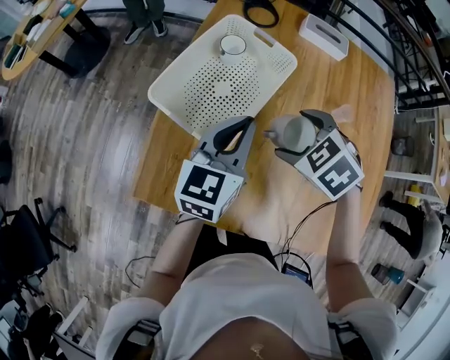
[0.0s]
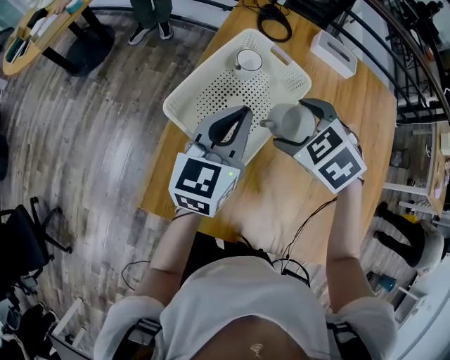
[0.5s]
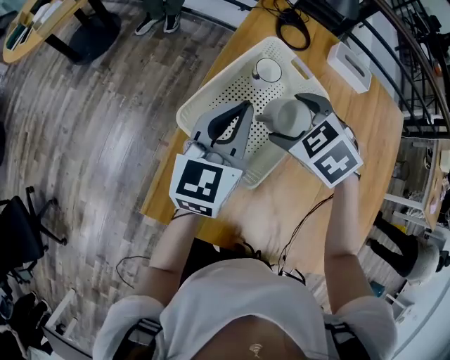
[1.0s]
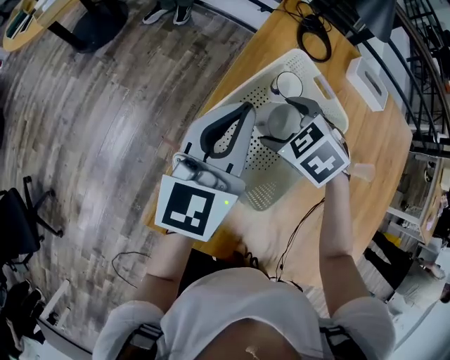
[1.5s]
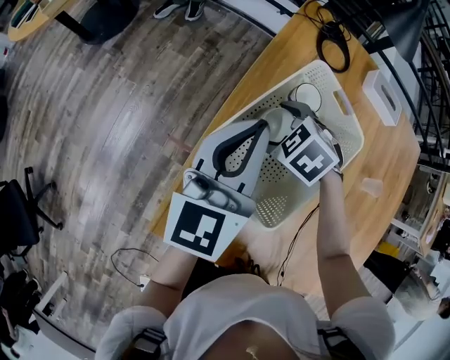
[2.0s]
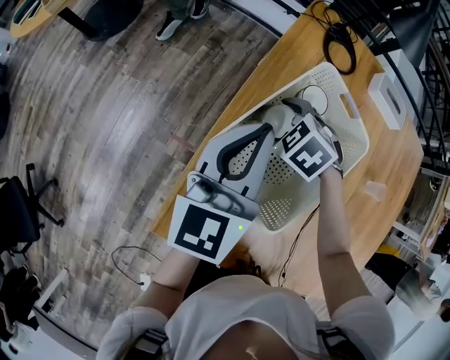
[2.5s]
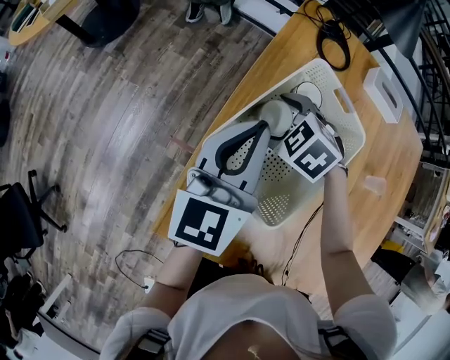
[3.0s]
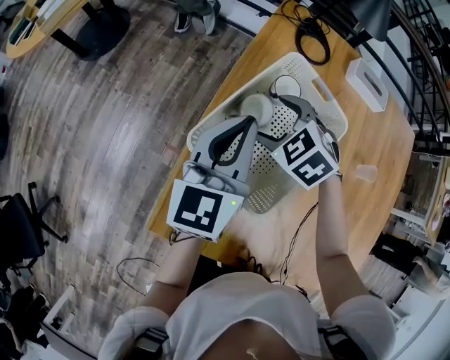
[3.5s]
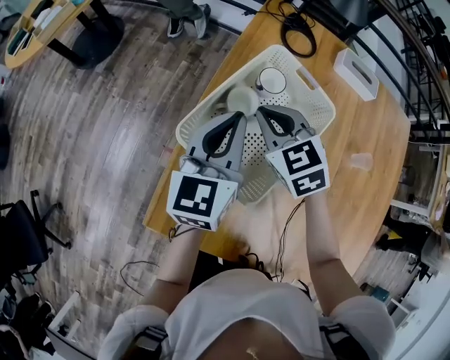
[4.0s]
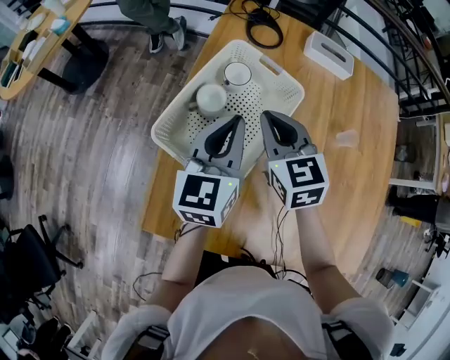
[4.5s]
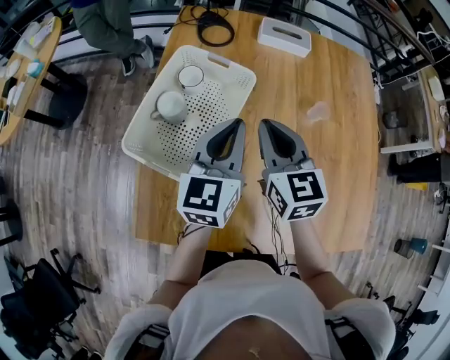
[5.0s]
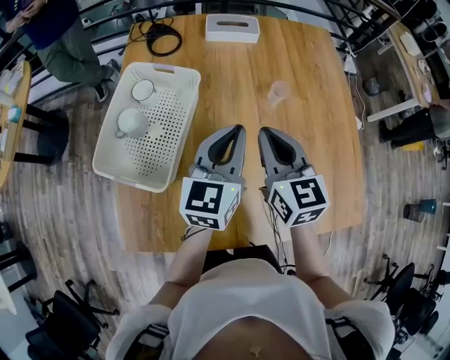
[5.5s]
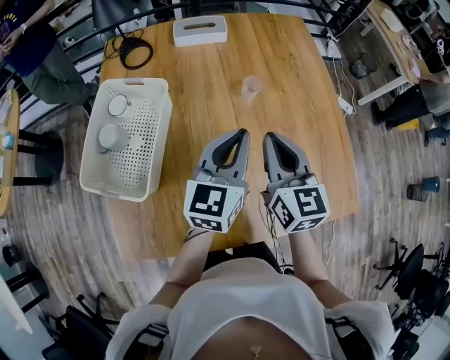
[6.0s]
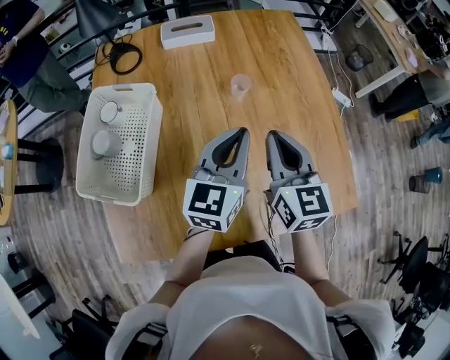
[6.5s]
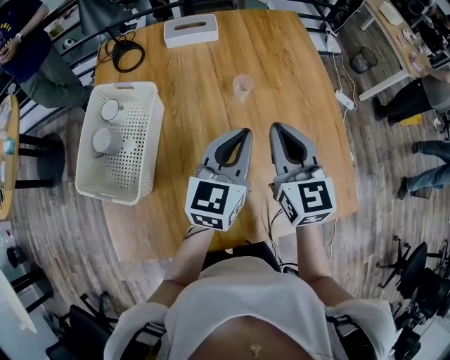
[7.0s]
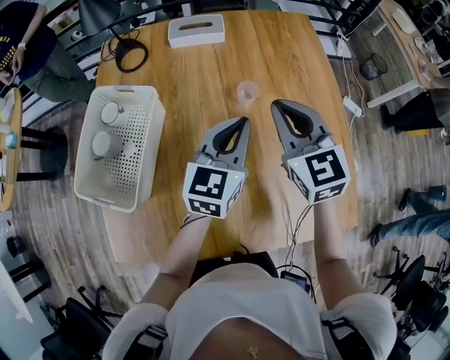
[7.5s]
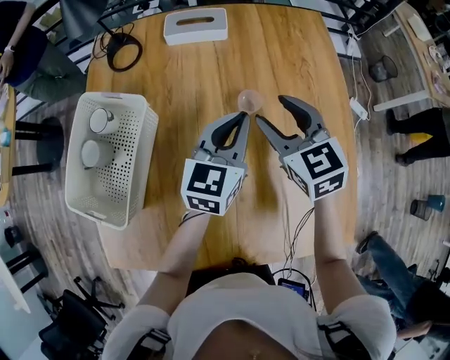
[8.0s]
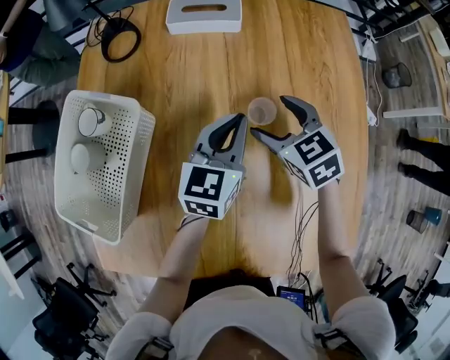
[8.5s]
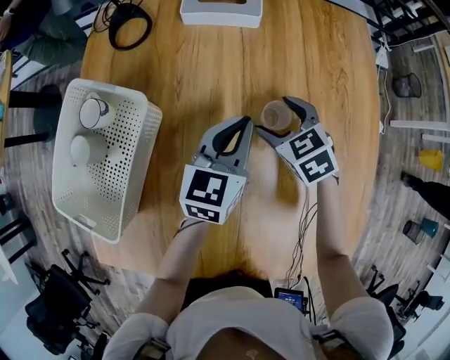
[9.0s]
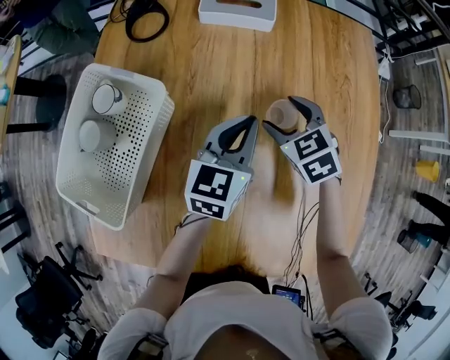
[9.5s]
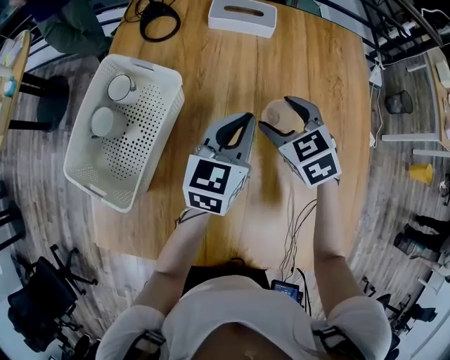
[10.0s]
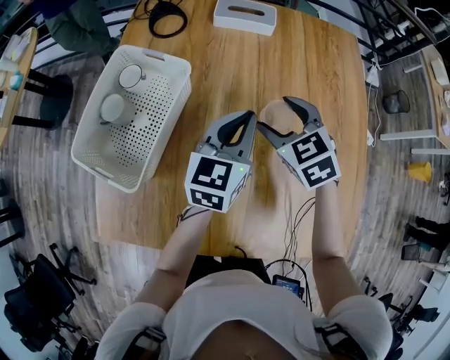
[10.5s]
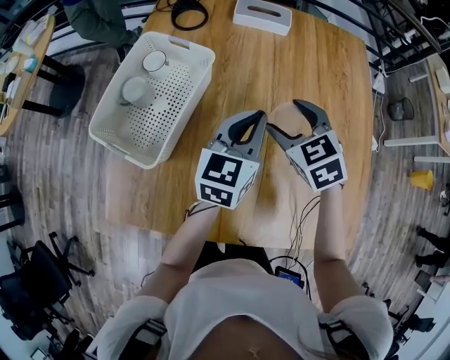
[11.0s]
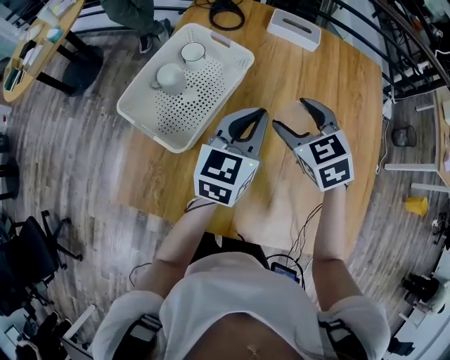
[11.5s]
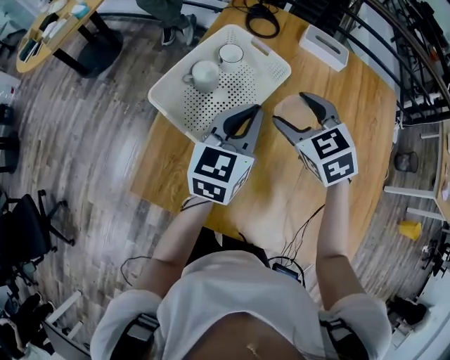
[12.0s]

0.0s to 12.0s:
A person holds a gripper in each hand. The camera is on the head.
0.0s to 2.0s: The right gripper travels forward, to the left and downward by about 30 cm, while the left gripper moves forward and to the left, roughly 20 cm.
2.0s to 4.0s: The right gripper goes about 10 cm upward, tips its fingers upward by roughly 30 degrees, and closes.
4.0s to 6.0s: The right gripper moves roughly 40 cm, and turns by roughly 60 degrees. Meanwhile the left gripper ends up roughly 40 cm from where it was, and turns by some 40 degrees.
6.0s to 8.0s: Both grippers travel together forward, approximately 15 cm. The right gripper swivels approximately 30 degrees, and opens.
8.0s to 10.0s: The right gripper is displaced downward and to the left by roughly 10 cm, and swivels approximately 20 degrees. Meanwhile the left gripper shifts roughly 5 cm to the left, and moves about 10 cm downward and comes back.
10.0s to 12.0s: The left gripper moves to the left, approximately 20 cm, while the right gripper travels to the left and upward by about 25 cm.

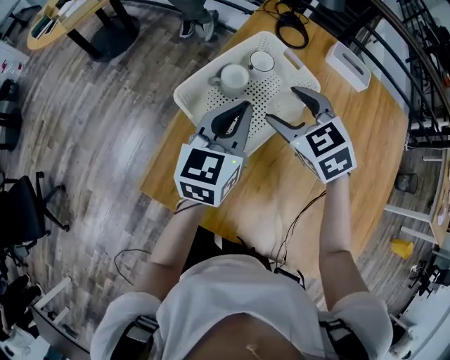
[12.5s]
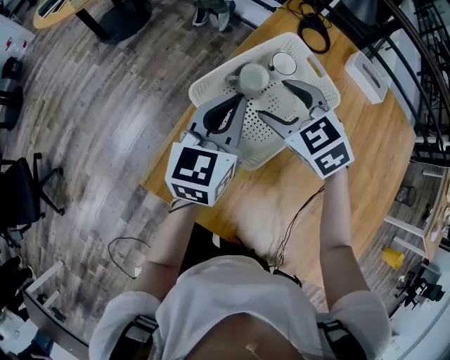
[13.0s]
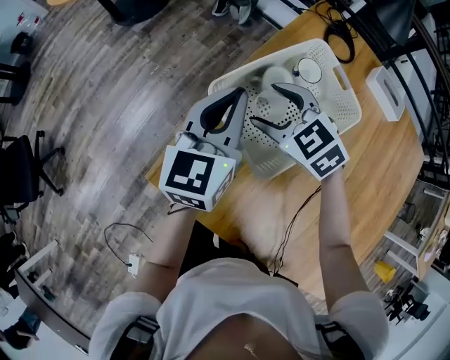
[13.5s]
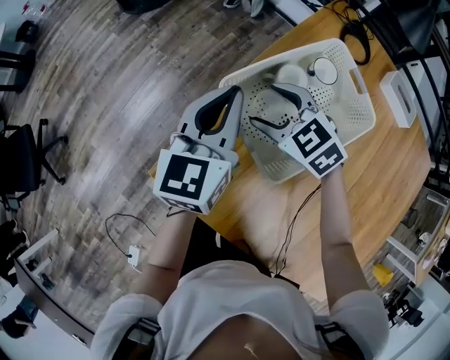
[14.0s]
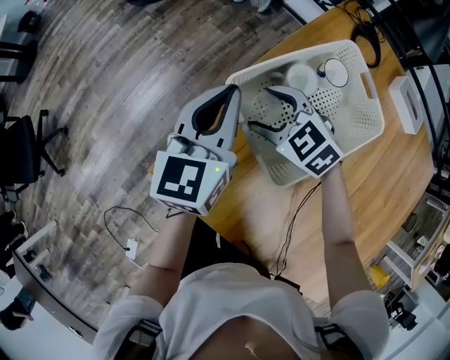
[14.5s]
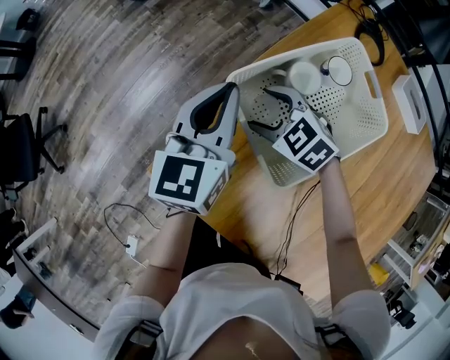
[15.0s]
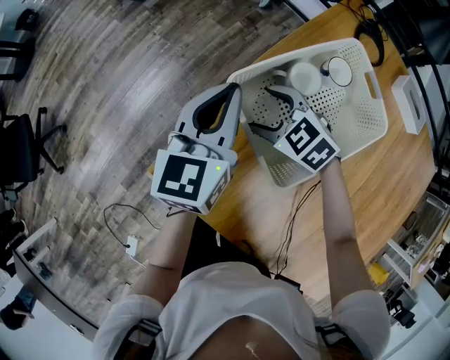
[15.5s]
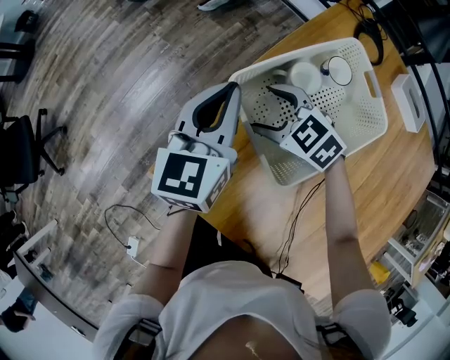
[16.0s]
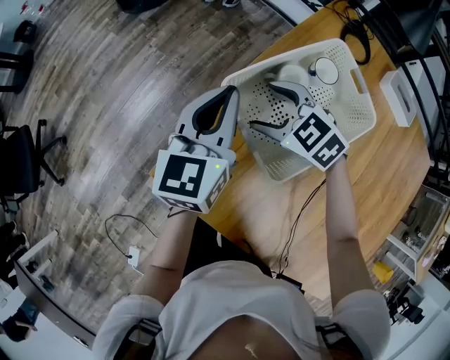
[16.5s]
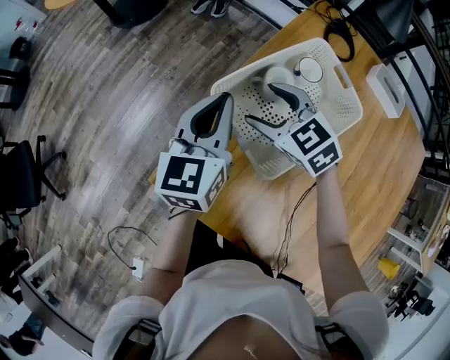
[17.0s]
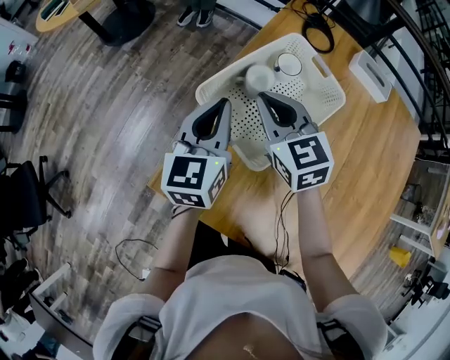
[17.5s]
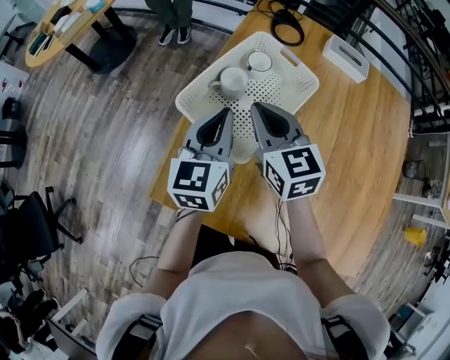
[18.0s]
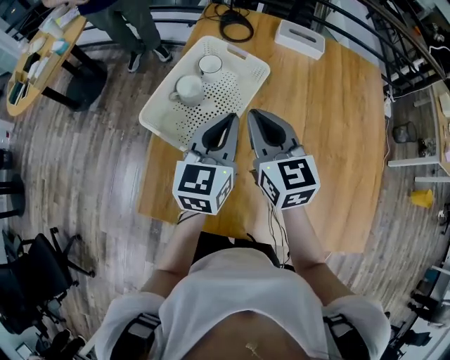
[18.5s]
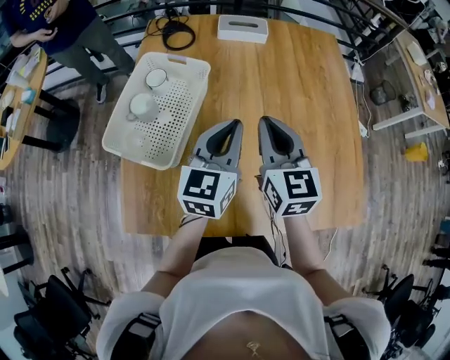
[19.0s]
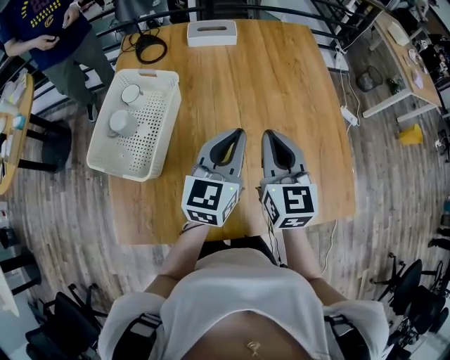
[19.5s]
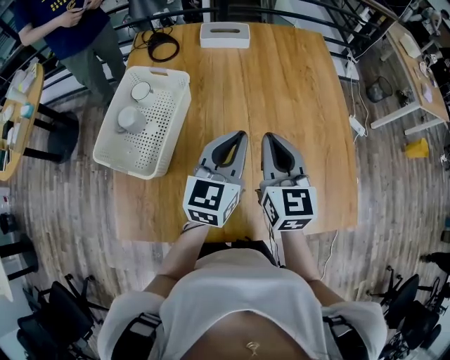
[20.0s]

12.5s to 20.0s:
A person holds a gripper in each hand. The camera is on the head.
12.5s to 14.5s: The right gripper ends up about 20 cm from where it was, and turns by roughly 30 degrees, while the left gripper shifts by roughly 15 cm, and swivels roughly 20 degrees.
14.5s to 16.5s: The grippers move only a little.
16.5s to 18.0s: The right gripper heads upward, covering about 15 cm, rotates approximately 60 degrees, and closes. Meanwhile the left gripper shifts by approximately 10 cm.
18.0s to 20.0s: The left gripper moves some 35 cm, and rotates some 30 degrees. Meanwhile the right gripper ends up about 35 cm from where it was, and turns by some 40 degrees.

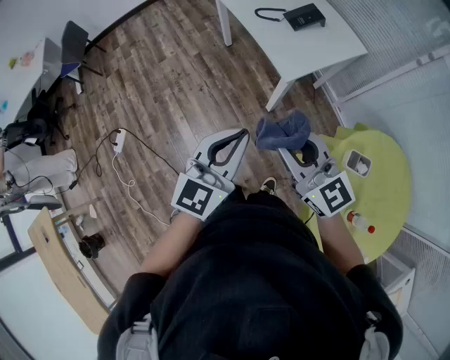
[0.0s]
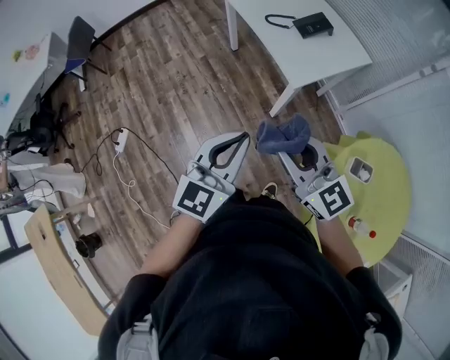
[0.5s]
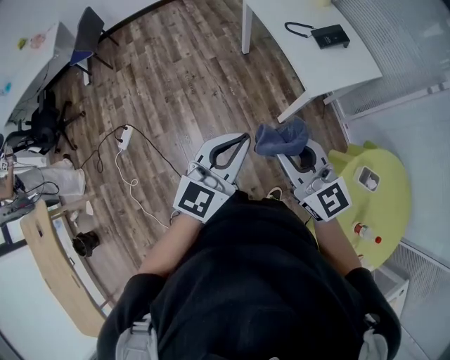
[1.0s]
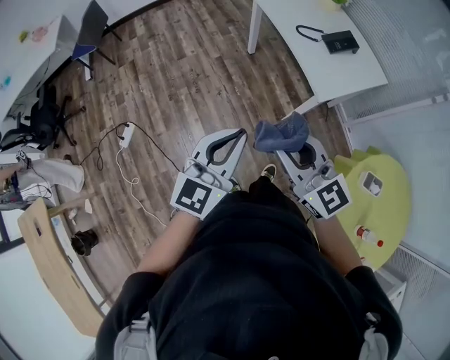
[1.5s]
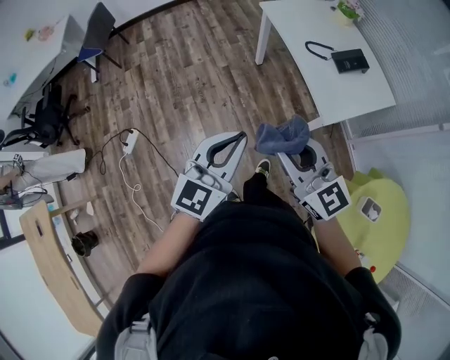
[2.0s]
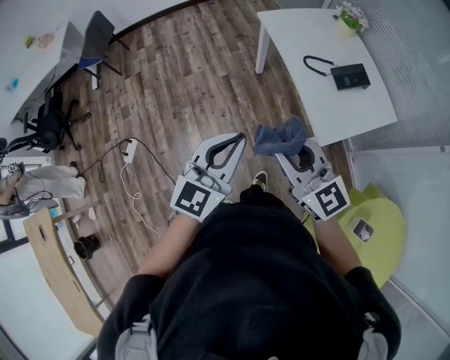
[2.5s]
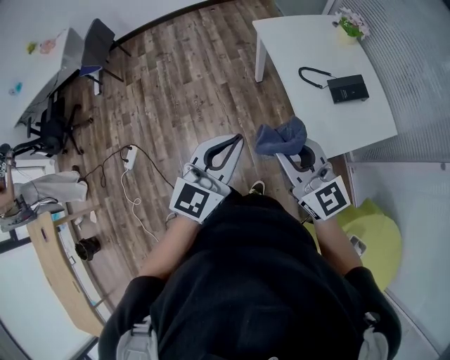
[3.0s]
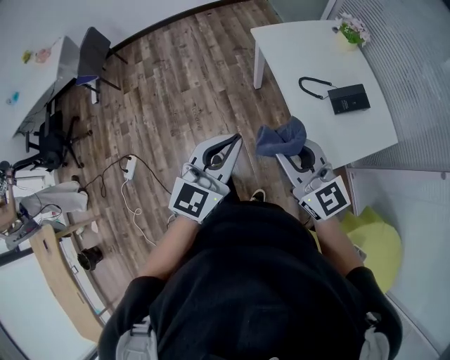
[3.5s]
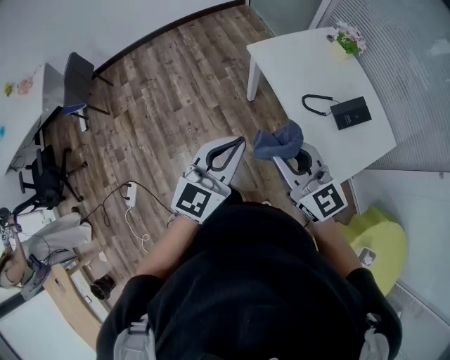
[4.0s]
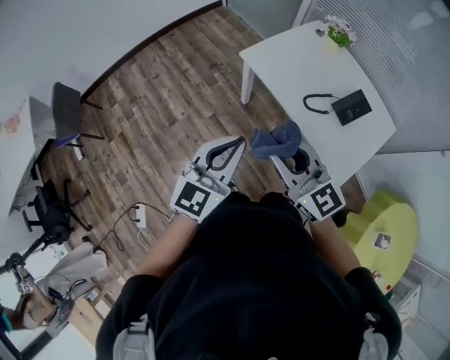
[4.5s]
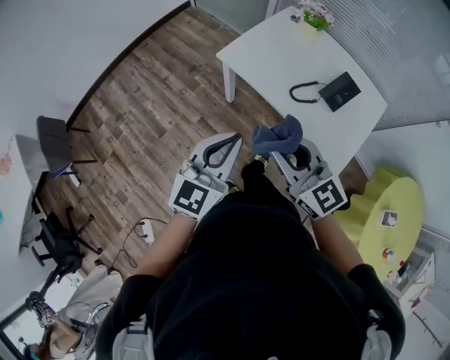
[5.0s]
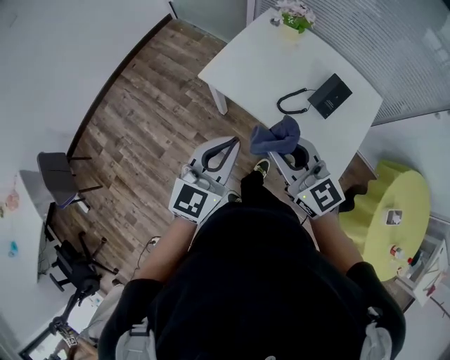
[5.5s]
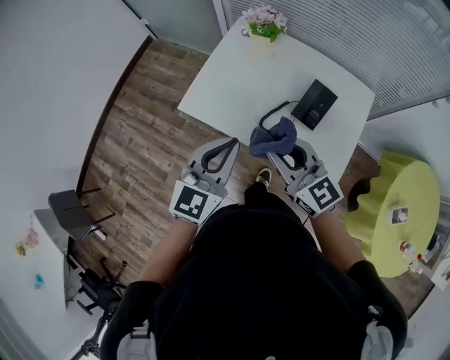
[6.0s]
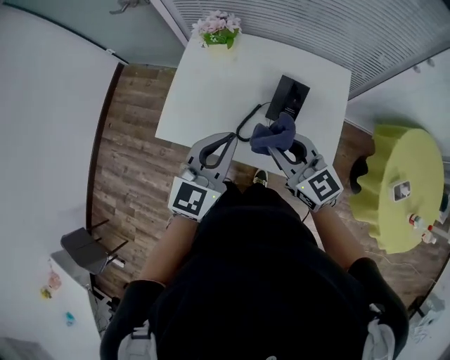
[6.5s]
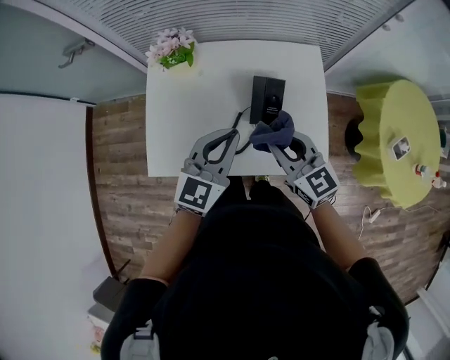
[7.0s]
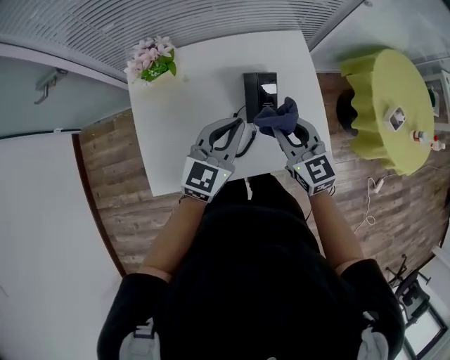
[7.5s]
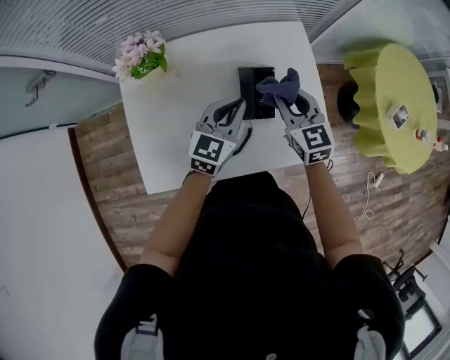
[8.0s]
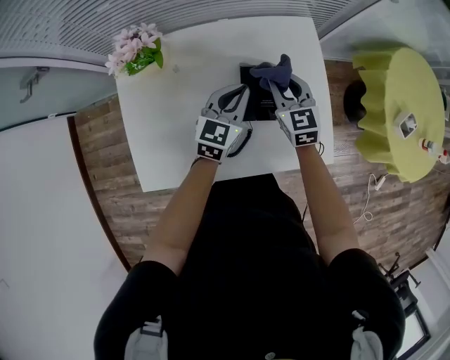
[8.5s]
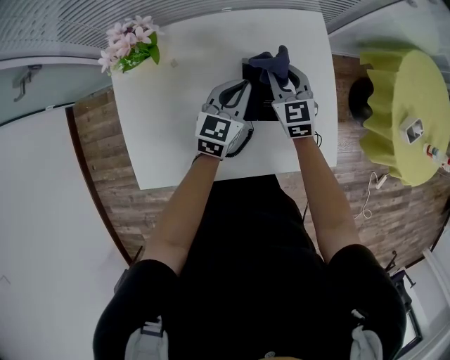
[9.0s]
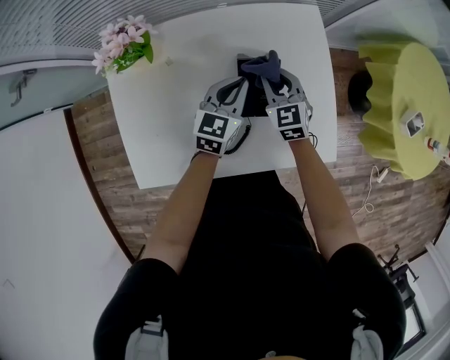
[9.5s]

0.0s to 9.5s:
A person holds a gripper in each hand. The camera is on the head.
0.0s to 2.0s: The grippers both shift to the left and forward by some 20 cm.
2.0s to 4.0s: Both grippers move forward, some 35 cm.
4.0s to 5.5s: Both grippers travel together forward, some 15 cm. The left gripper swivels approximately 20 degrees. Meanwhile the right gripper turns by some 30 degrees.
5.5s to 7.5s: The right gripper shifts by about 35 cm, and swivels some 60 degrees, while the left gripper moves about 40 cm, and swivels about 50 degrees.
7.5s to 9.5s: The two grippers go about 20 cm downward and forward.
